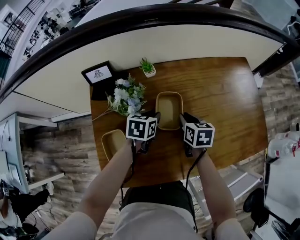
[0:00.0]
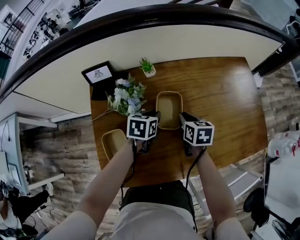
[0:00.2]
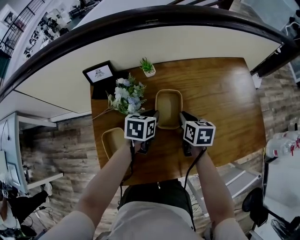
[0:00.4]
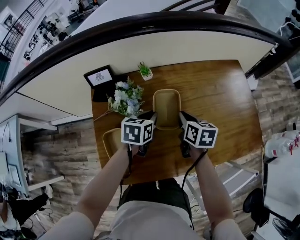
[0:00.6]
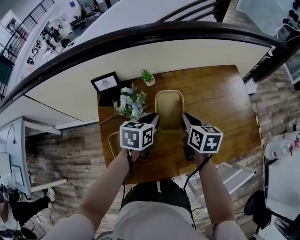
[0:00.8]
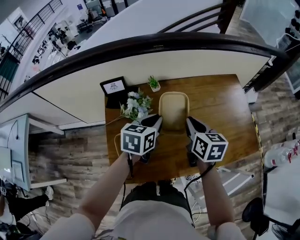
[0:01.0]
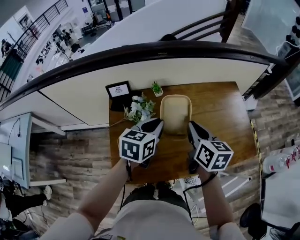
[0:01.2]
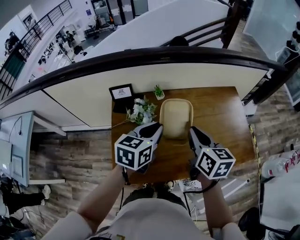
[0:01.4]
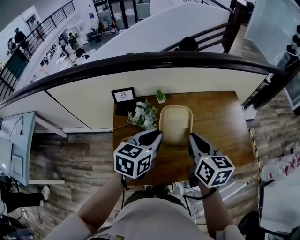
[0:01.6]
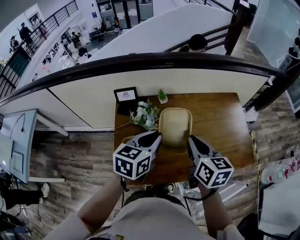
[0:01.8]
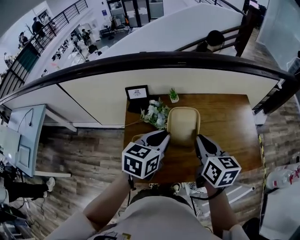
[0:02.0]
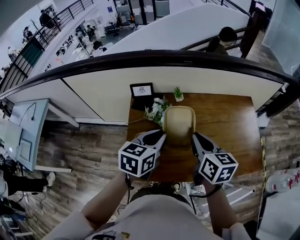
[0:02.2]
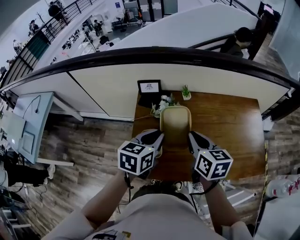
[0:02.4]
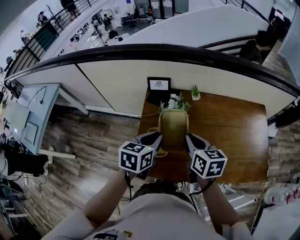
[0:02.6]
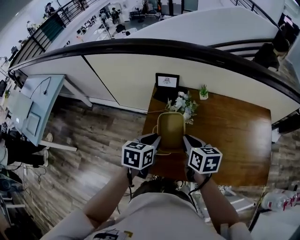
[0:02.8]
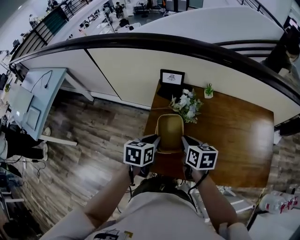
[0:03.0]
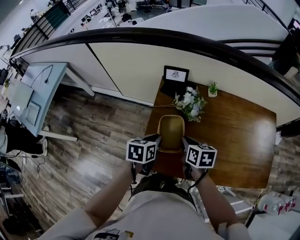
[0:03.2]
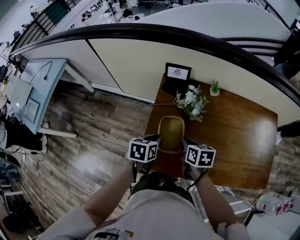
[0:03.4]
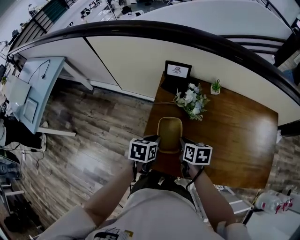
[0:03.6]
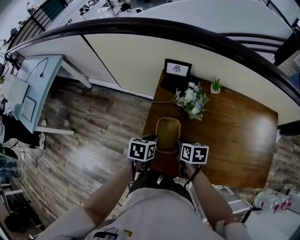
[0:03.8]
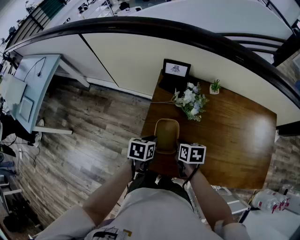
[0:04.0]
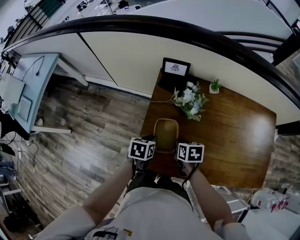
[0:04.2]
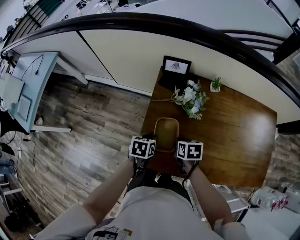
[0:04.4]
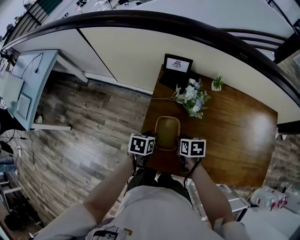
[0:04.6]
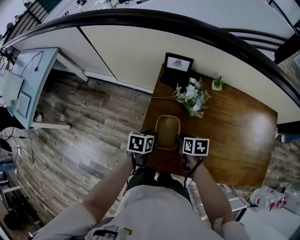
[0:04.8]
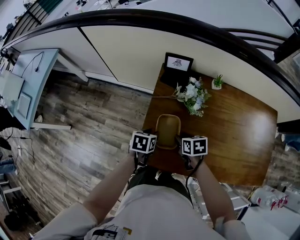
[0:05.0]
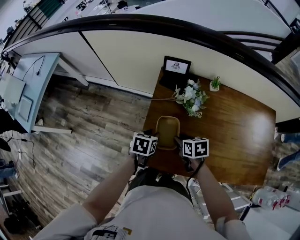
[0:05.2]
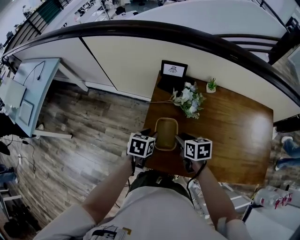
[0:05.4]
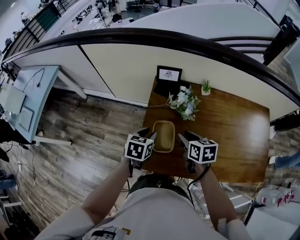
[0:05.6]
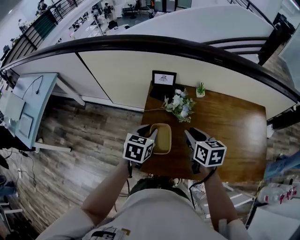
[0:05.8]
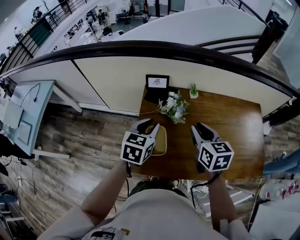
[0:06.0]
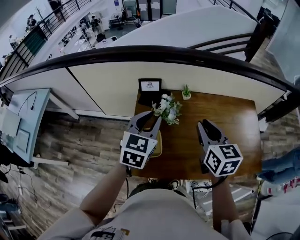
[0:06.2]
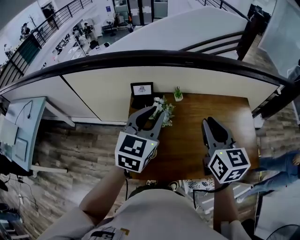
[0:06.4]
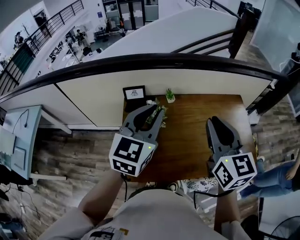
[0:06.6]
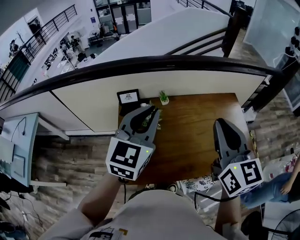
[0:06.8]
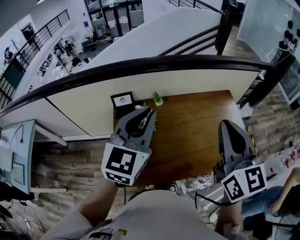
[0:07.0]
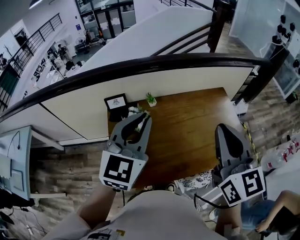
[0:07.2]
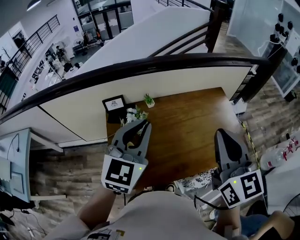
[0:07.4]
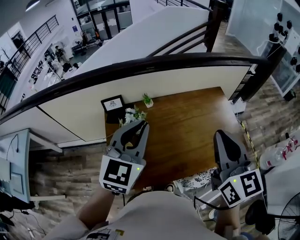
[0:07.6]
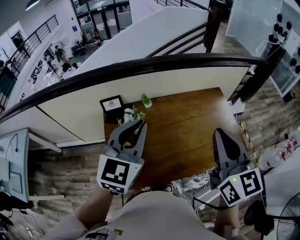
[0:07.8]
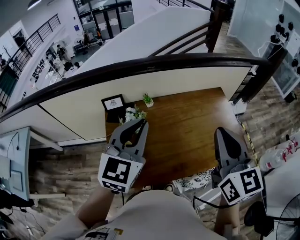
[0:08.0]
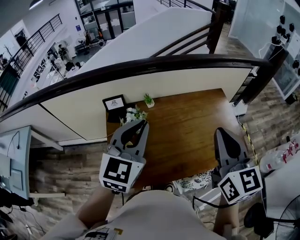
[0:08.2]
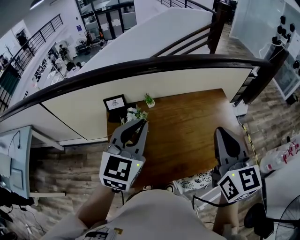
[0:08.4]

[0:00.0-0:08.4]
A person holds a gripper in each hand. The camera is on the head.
0:00.0 to 0:01.4: The two grippers go approximately 30 cm upward. The left gripper turns by approximately 20 degrees, while the right gripper rotates some 20 degrees.
0:01.4 to 0:02.8: The right gripper goes about 20 cm to the left and downward, and swivels some 30 degrees. Meanwhile the left gripper heads to the left, downward and backward, covering some 20 cm, and turns by roughly 30 degrees.
0:02.8 to 0:04.2: The two grippers go approximately 15 cm downward. The right gripper rotates some 20 degrees.
0:04.2 to 0:05.6: Both grippers move upward, roughly 10 cm.
0:05.6 to 0:07.0: The two grippers go roughly 35 cm upward. The left gripper tilts its fingers roughly 40 degrees upward; the right gripper tips its fingers upward by about 40 degrees, and closes.
0:07.0 to 0:08.4: The grippers move only a little.

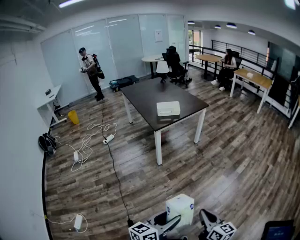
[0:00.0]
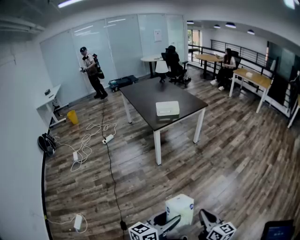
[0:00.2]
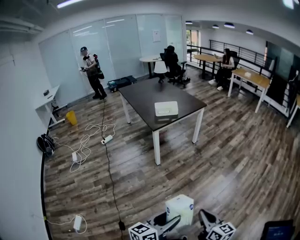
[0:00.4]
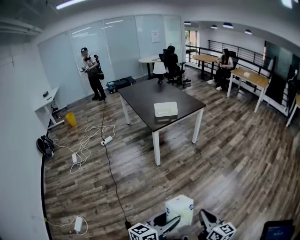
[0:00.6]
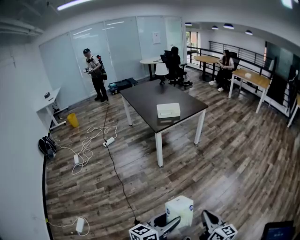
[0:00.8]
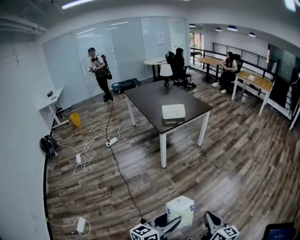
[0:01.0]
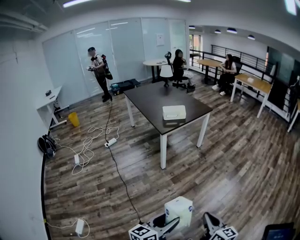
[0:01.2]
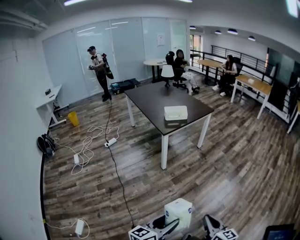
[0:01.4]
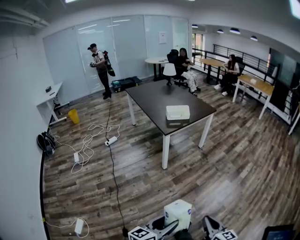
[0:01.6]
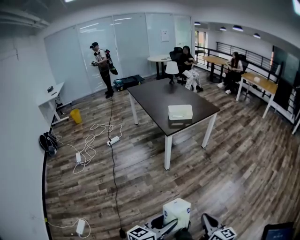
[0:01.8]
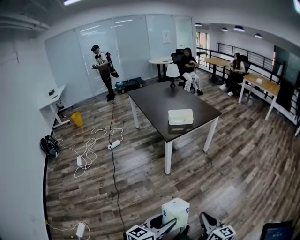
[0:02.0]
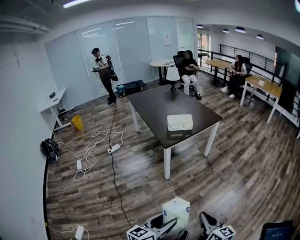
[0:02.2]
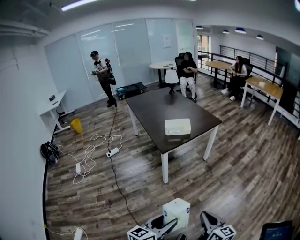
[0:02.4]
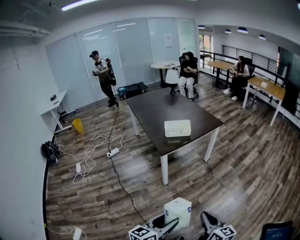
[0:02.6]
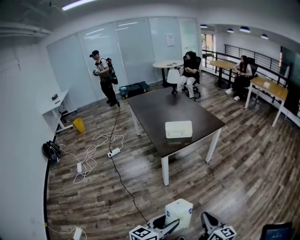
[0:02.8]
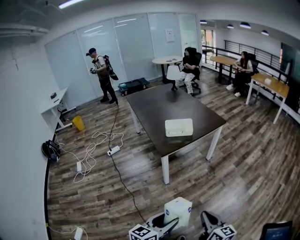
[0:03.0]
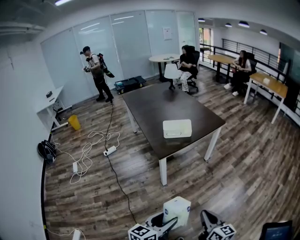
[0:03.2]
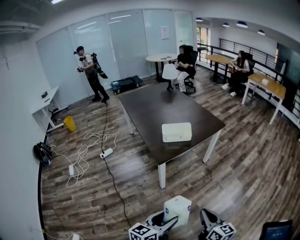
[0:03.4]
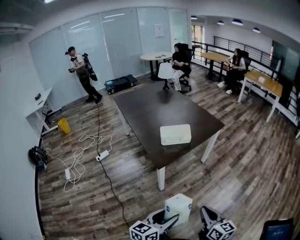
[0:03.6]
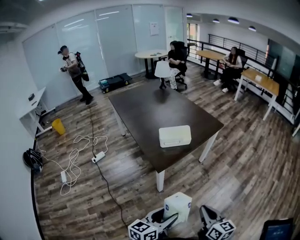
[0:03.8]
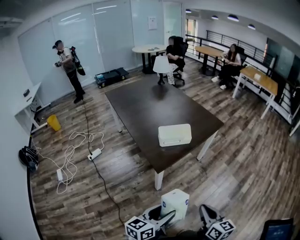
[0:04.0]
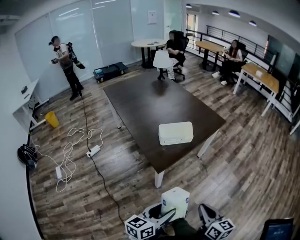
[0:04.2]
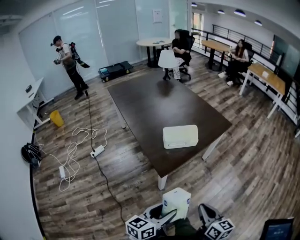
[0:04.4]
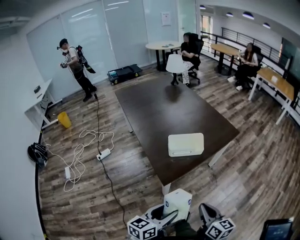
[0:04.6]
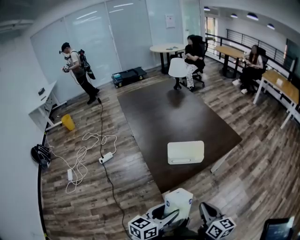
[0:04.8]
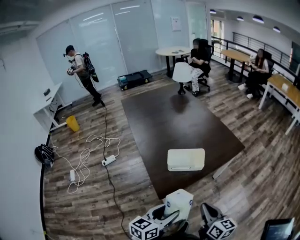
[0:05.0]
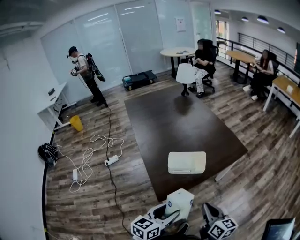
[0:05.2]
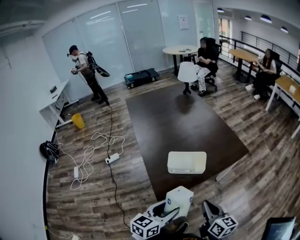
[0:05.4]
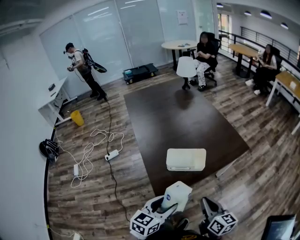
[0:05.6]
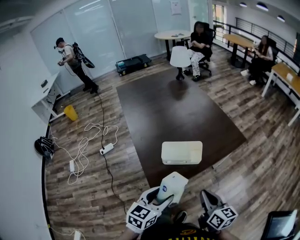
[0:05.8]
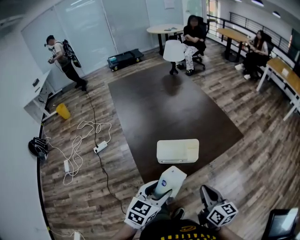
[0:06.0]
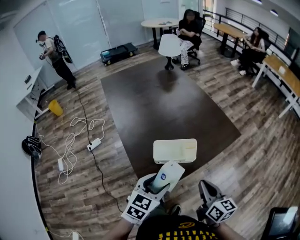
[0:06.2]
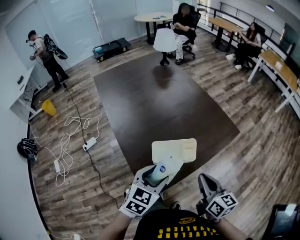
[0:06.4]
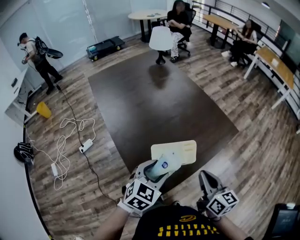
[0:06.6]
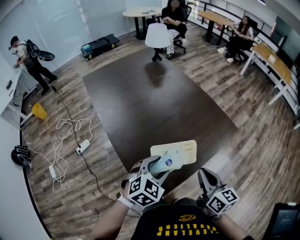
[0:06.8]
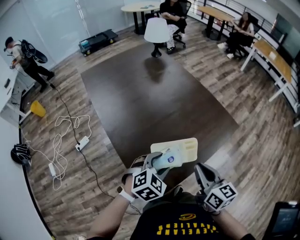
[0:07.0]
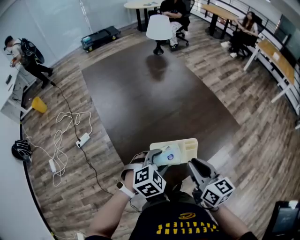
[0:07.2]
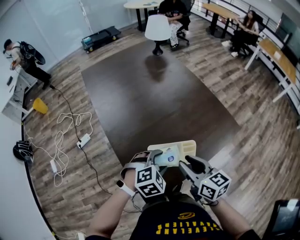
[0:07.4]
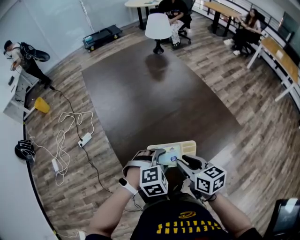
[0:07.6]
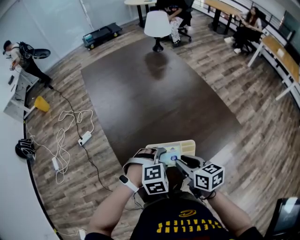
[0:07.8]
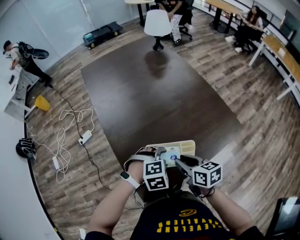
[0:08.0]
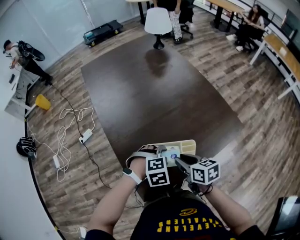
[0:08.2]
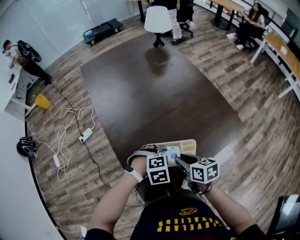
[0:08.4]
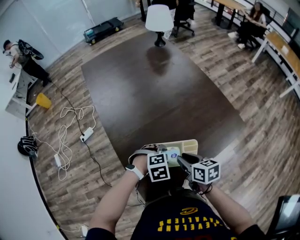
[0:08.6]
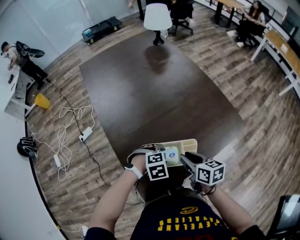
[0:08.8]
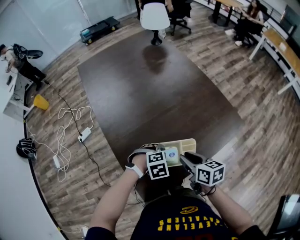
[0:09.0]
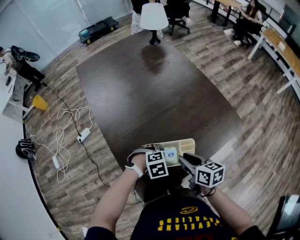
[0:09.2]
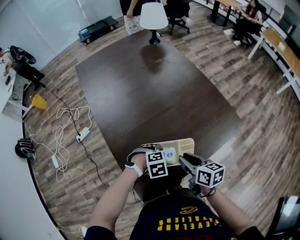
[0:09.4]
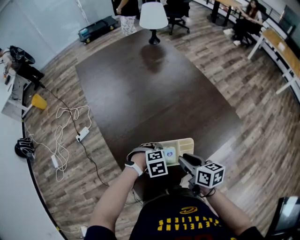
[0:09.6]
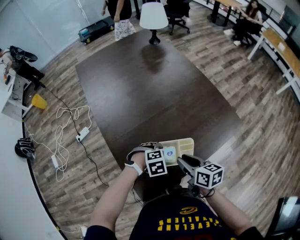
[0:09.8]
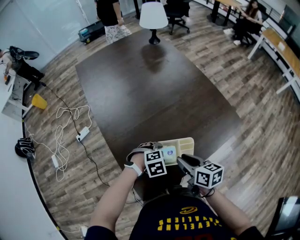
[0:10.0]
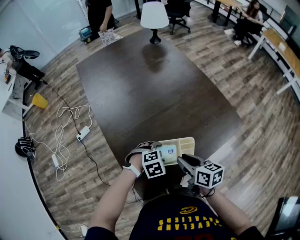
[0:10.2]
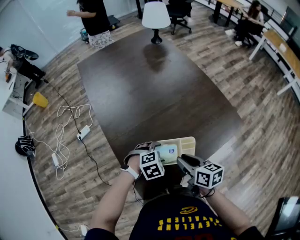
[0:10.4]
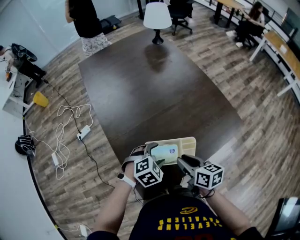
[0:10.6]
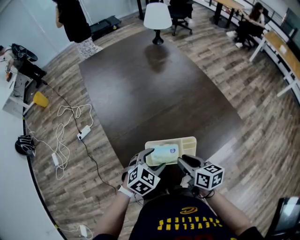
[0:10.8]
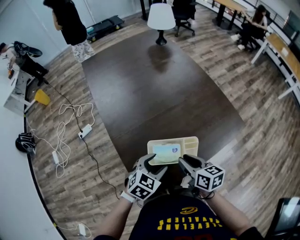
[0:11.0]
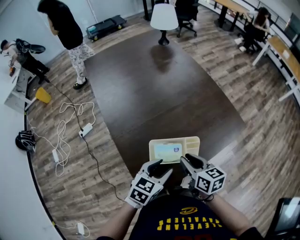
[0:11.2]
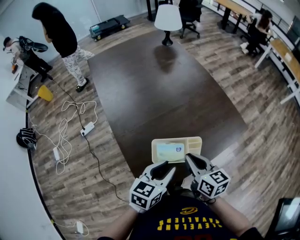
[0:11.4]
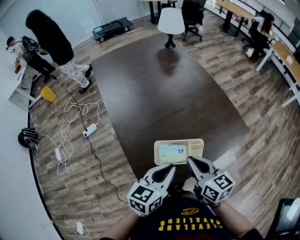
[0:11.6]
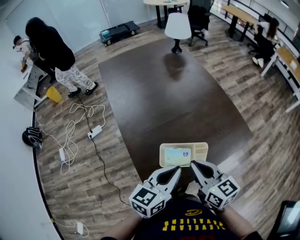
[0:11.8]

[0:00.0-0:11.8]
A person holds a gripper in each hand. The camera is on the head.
0:00.0 to 0:01.4: Both grippers move to the left, about 10 cm.
0:01.4 to 0:03.0: Both grippers travel together forward, approximately 30 cm.
0:03.0 to 0:04.4: Both grippers travel together forward and to the left, about 30 cm.
0:04.4 to 0:06.0: Both grippers travel together forward, roughly 25 cm. The left gripper turns by some 30 degrees.
0:06.0 to 0:07.4: The right gripper is displaced forward and to the left by about 20 cm, and opens up; the left gripper shifts approximately 20 cm forward, and rolls clockwise, seen from behind, by roughly 40 degrees.
0:07.4 to 0:08.8: Both grippers travel together downward, roughly 10 cm. The left gripper changes its angle by some 20 degrees.
0:08.8 to 0:10.4: The grippers move only a little.
0:10.4 to 0:11.8: The left gripper travels upward by some 20 cm, tilts its fingers roughly 50 degrees upward, and closes its fingers, while the right gripper is displaced upward by approximately 15 cm, turns by roughly 20 degrees, and closes its fingers.

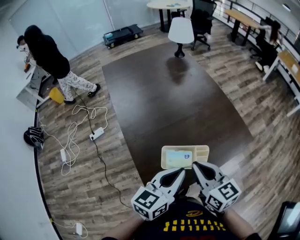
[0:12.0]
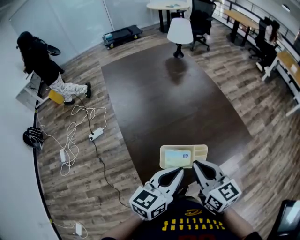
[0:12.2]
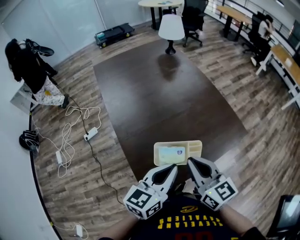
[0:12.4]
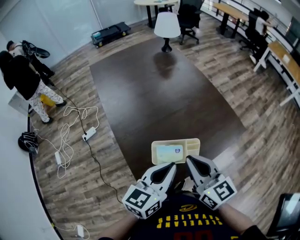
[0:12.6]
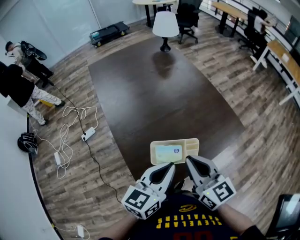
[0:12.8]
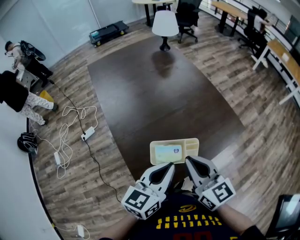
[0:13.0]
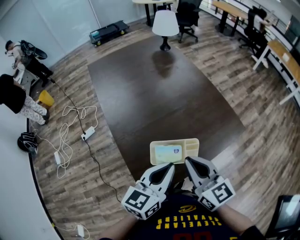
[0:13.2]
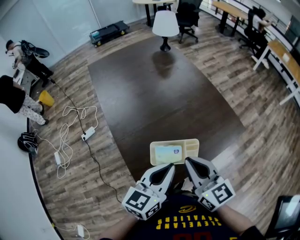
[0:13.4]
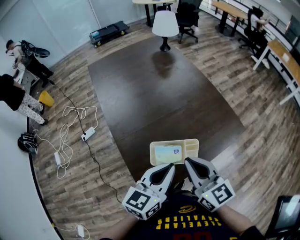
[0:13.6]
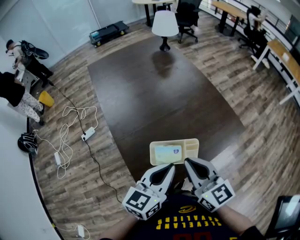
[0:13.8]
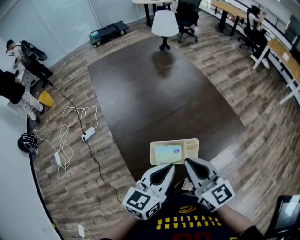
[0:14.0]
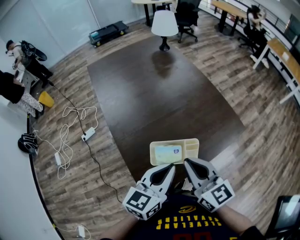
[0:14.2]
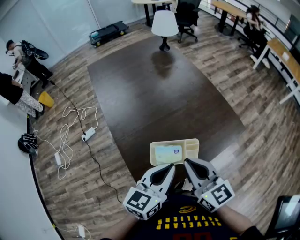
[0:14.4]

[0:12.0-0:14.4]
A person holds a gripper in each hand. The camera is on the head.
0:12.0 to 0:13.2: The grippers move only a little.
0:13.2 to 0:14.4: Both grippers stay about where they are.

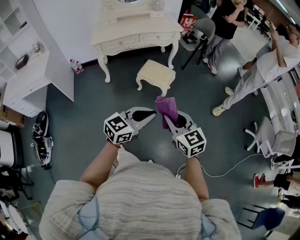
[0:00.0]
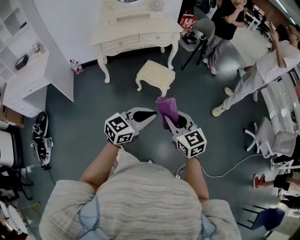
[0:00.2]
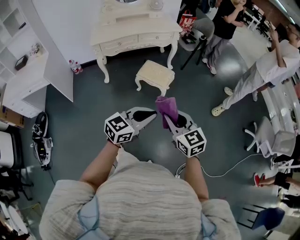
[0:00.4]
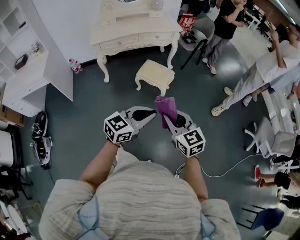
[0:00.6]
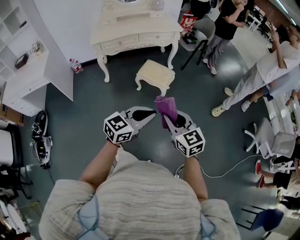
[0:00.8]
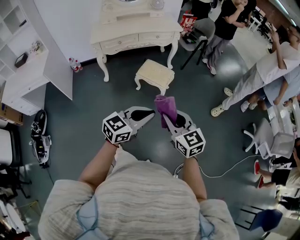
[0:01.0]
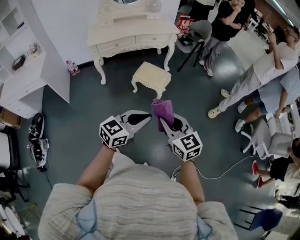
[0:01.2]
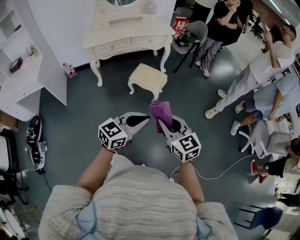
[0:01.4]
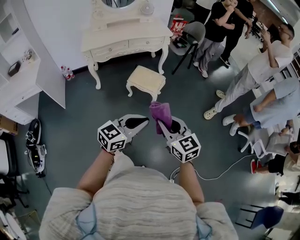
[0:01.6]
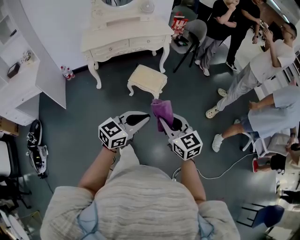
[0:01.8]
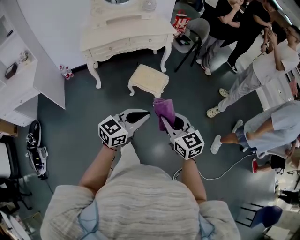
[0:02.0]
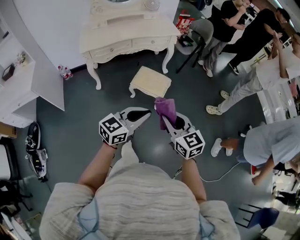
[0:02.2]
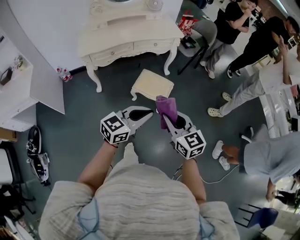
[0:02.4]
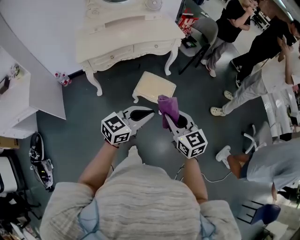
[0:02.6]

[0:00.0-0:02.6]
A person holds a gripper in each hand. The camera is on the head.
0:00.0 to 0:01.2: The two grippers keep their place.
0:01.2 to 0:02.6: The two grippers go some 30 cm forward and to the left.
